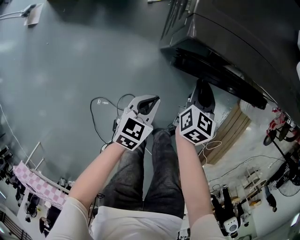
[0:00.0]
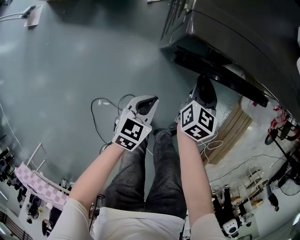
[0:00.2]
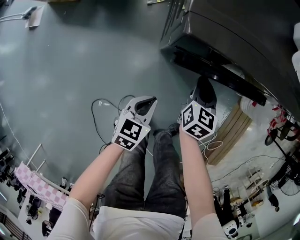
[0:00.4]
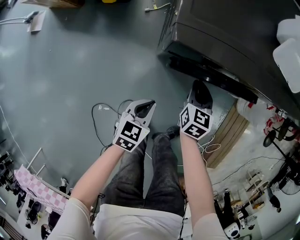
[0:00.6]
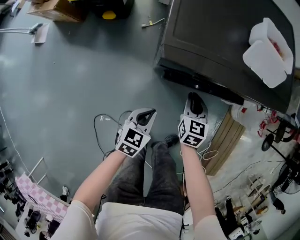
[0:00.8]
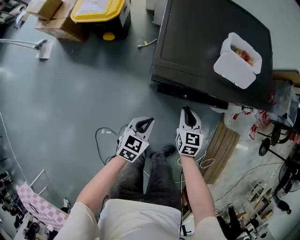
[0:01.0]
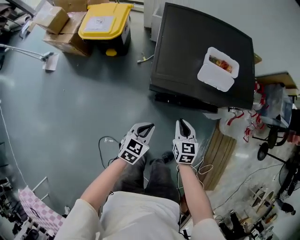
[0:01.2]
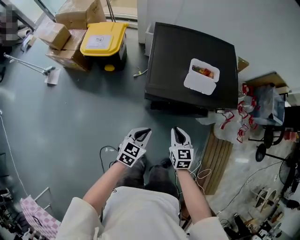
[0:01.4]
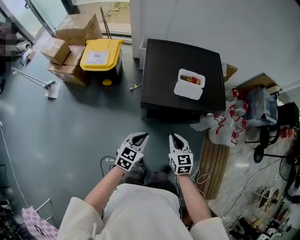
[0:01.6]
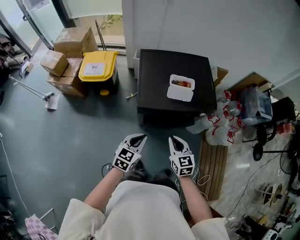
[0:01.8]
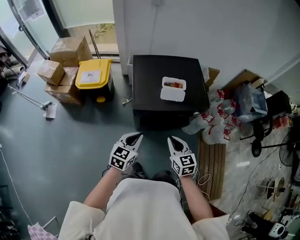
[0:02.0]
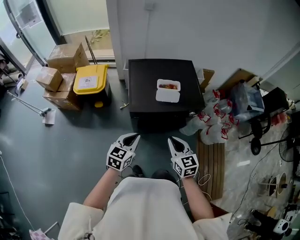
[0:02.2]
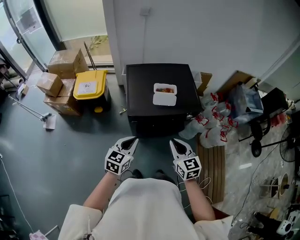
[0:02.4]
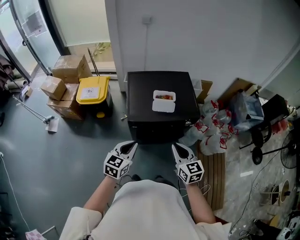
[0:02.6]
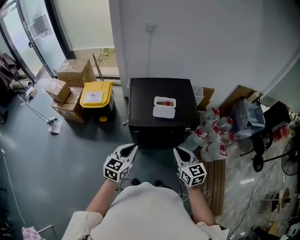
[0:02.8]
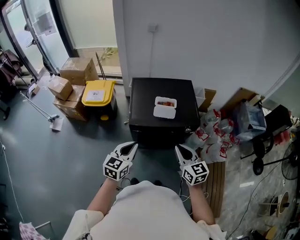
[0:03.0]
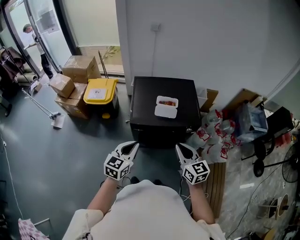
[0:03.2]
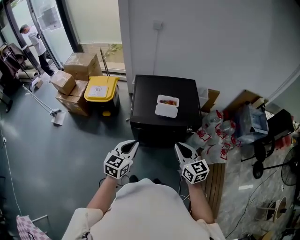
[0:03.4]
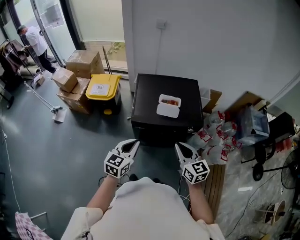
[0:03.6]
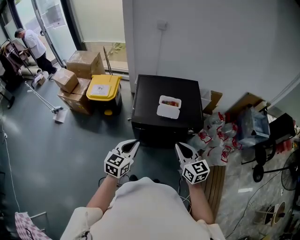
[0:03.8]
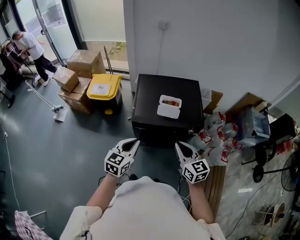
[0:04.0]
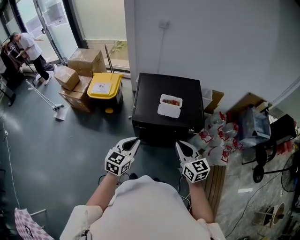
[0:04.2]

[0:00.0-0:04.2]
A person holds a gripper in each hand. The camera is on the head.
0:00.0 to 0:01.4: The grippers both shift upward by about 30 cm. The right gripper turns by roughly 20 degrees.
0:01.4 to 0:02.8: The left gripper goes roughly 25 cm upward. Meanwhile the right gripper shifts roughly 30 cm upward and to the right.
0:02.8 to 0:04.2: There are only small adjustments of the grippers.

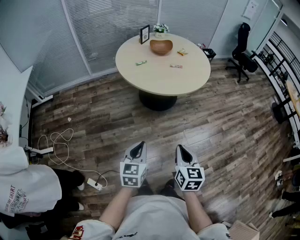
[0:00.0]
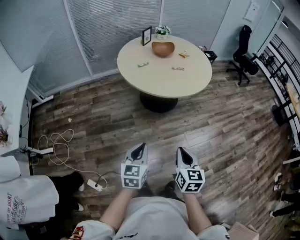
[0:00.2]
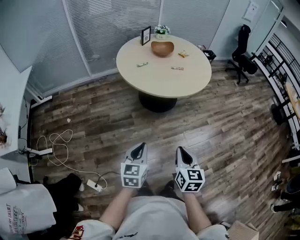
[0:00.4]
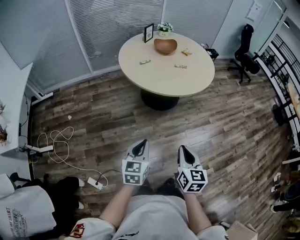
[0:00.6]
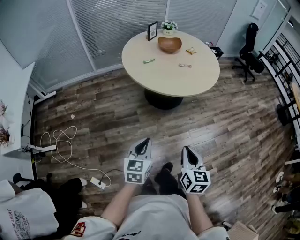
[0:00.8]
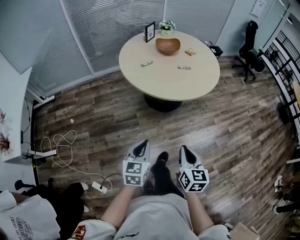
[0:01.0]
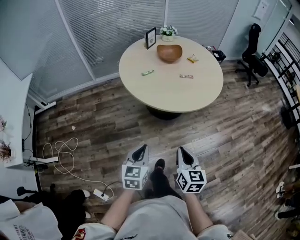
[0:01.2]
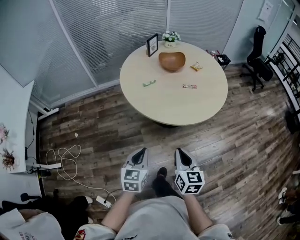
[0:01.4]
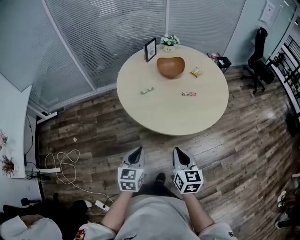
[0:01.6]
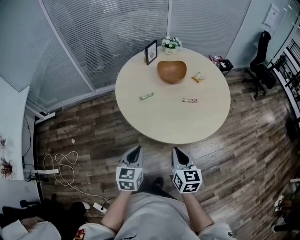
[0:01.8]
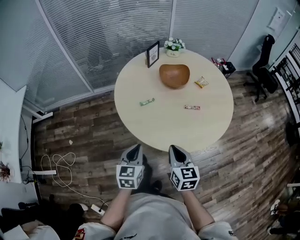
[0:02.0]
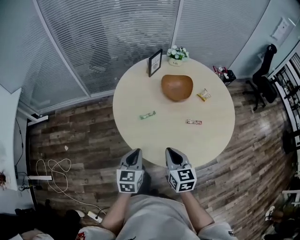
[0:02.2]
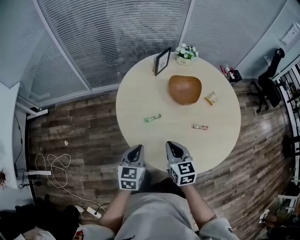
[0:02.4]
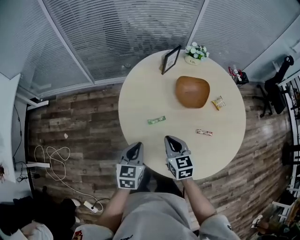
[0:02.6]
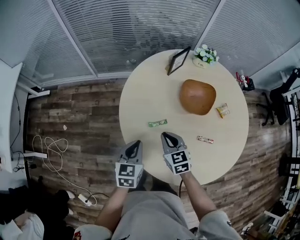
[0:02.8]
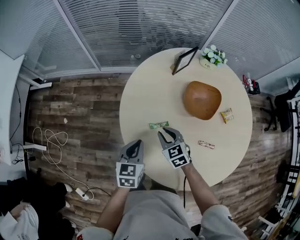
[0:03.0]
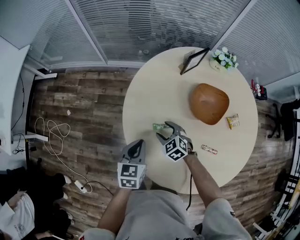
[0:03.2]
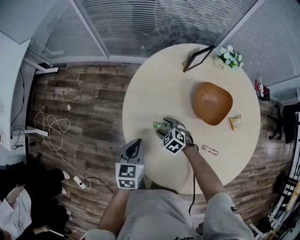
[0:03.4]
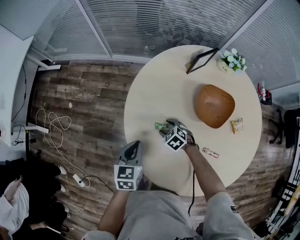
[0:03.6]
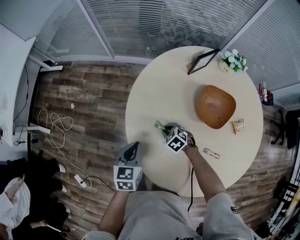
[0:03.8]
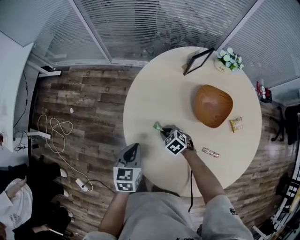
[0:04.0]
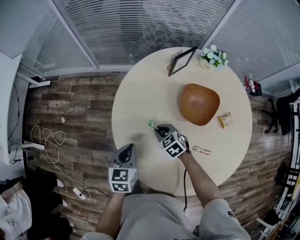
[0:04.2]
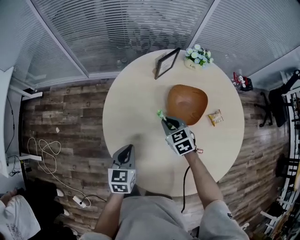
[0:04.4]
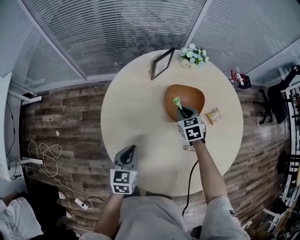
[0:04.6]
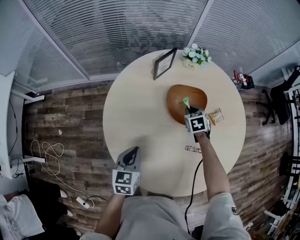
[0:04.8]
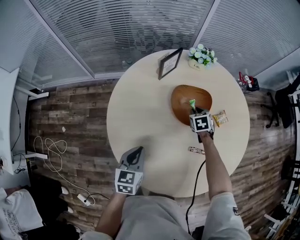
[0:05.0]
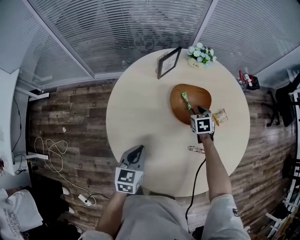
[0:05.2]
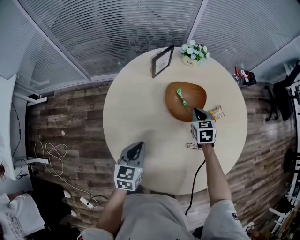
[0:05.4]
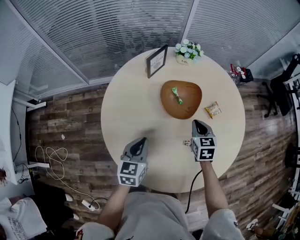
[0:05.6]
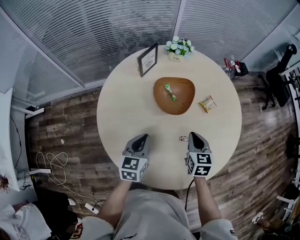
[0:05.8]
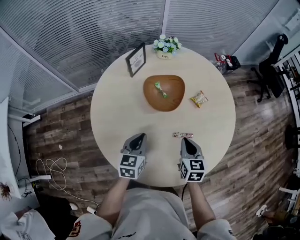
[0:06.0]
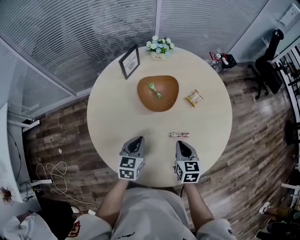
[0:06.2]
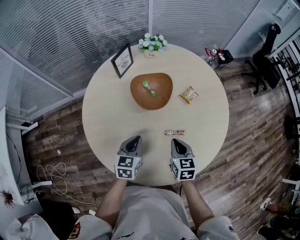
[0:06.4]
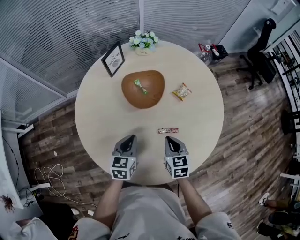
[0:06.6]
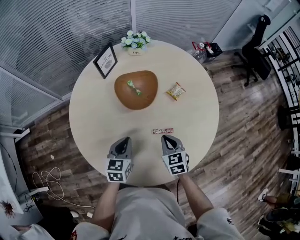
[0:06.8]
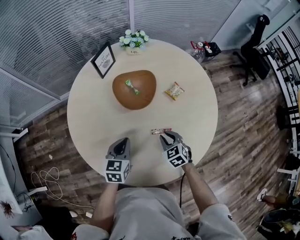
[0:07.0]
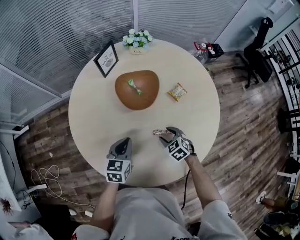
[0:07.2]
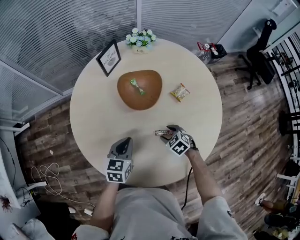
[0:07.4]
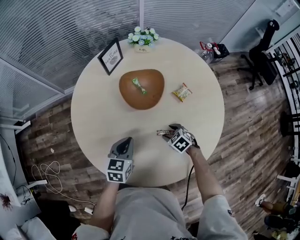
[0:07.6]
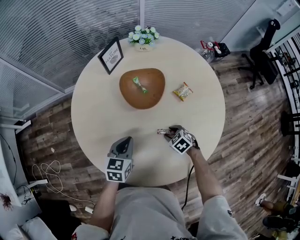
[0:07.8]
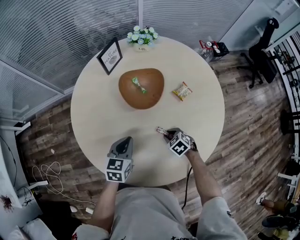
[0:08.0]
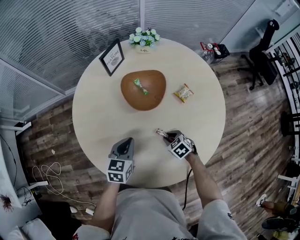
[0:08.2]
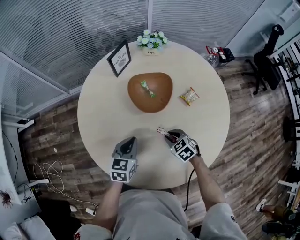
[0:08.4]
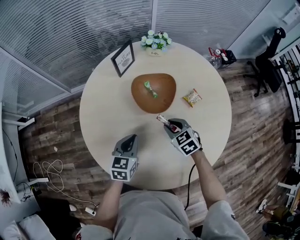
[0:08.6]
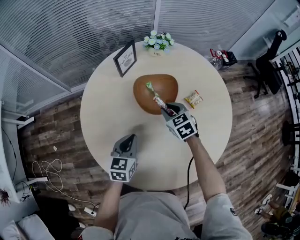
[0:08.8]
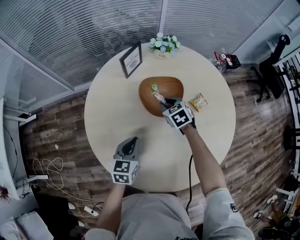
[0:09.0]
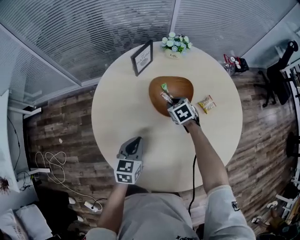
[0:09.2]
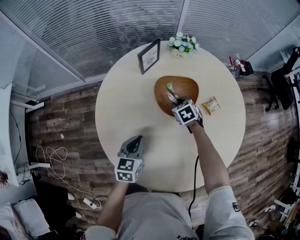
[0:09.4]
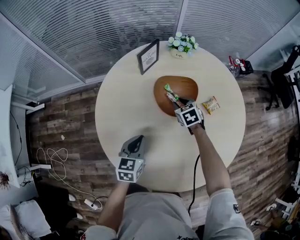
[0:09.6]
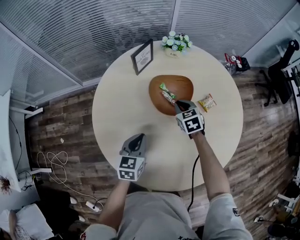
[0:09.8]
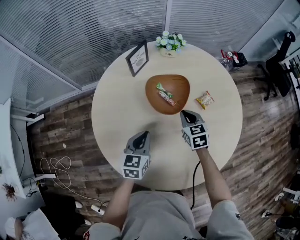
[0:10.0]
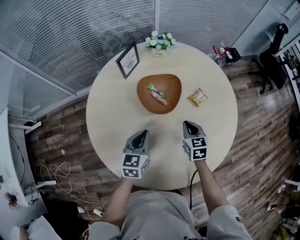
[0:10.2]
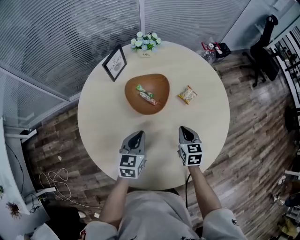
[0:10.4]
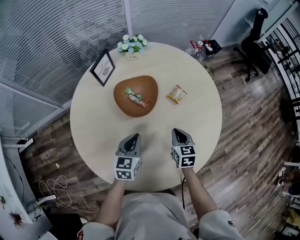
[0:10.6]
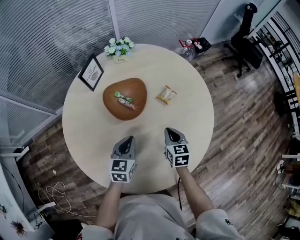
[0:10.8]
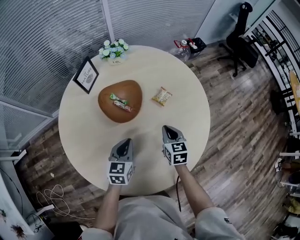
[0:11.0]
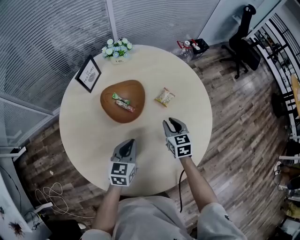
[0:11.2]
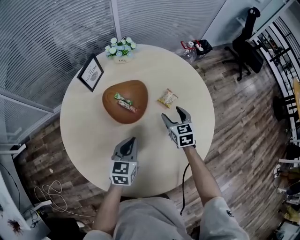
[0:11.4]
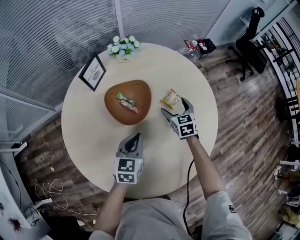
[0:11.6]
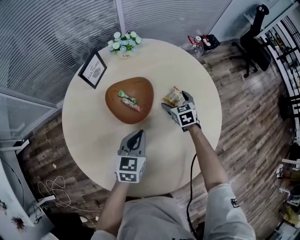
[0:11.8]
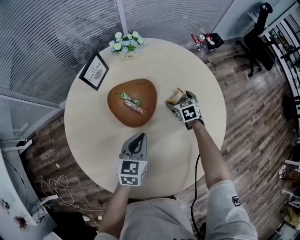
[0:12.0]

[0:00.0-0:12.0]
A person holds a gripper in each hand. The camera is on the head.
0:00.0 to 0:01.6: The grippers both shift forward by about 30 cm.
0:01.6 to 0:03.0: The grippers both shift forward by about 40 cm. The right gripper rotates approximately 50 degrees.
0:03.0 to 0:04.4: The left gripper travels to the right by some 5 cm, while the right gripper moves to the right and forward, roughly 15 cm, reaches roughly 15 cm downward, then returns, and opens, then closes once more.
0:04.4 to 0:06.0: The right gripper moves about 5 cm downward and comes back, and changes its angle by about 40 degrees; the left gripper ends up about 15 cm from where it was.
0:06.0 to 0:07.6: The left gripper moves approximately 5 cm. The right gripper is displaced downward by roughly 20 cm, turns by roughly 50 degrees, and opens.
0:07.6 to 0:09.0: The right gripper travels forward and upward by some 25 cm, while the left gripper shifts by approximately 5 cm.
0:09.0 to 0:10.4: The left gripper is displaced to the right by some 5 cm; the right gripper goes some 20 cm backward and to the right, and rotates roughly 40 degrees.
0:10.4 to 0:12.0: The right gripper shifts roughly 20 cm forward and downward, and opens. The left gripper goes approximately 10 cm to the right and forward.

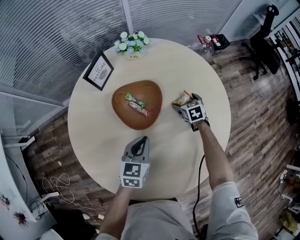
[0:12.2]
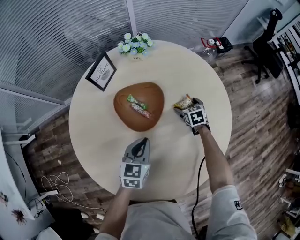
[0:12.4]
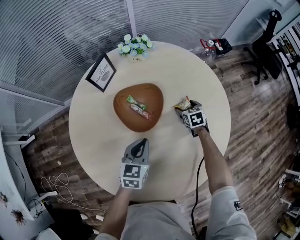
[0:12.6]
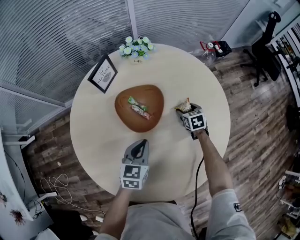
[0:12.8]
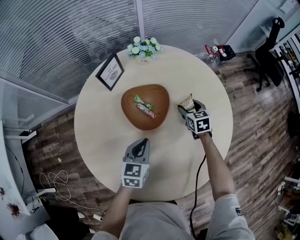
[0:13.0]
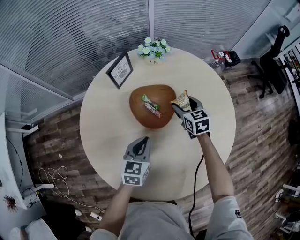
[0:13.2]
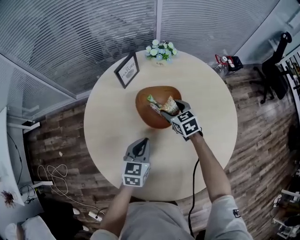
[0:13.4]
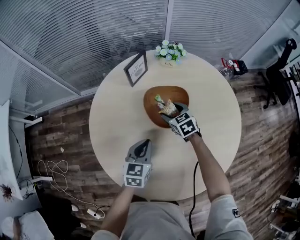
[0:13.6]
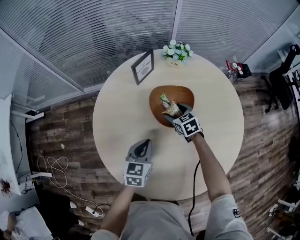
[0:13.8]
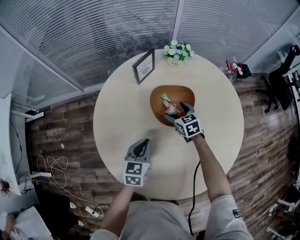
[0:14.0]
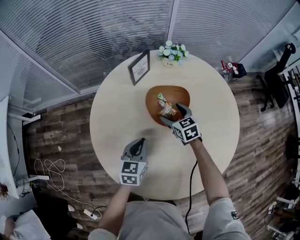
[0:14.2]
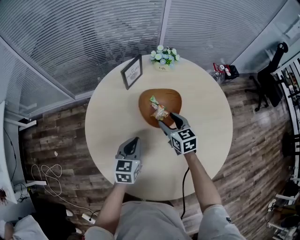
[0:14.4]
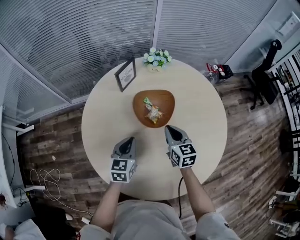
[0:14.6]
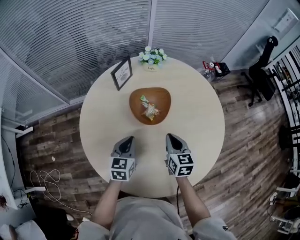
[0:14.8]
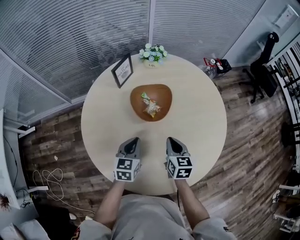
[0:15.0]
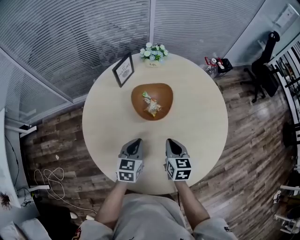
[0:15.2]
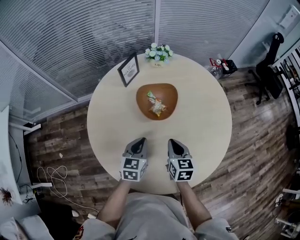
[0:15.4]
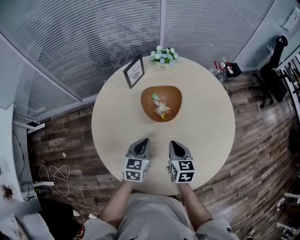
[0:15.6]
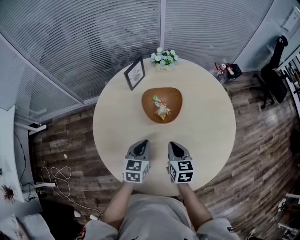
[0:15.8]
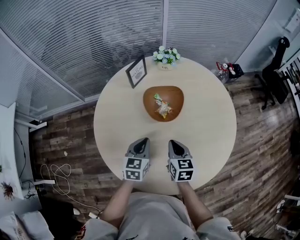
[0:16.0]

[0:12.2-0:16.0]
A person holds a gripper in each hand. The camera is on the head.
0:12.2 to 0:13.4: The right gripper moves to the left and upward, some 25 cm, swivels approximately 30 degrees, and closes; the left gripper is displaced to the left by approximately 5 cm.
0:13.4 to 0:14.8: The right gripper is displaced backward by about 15 cm, turns by approximately 30 degrees, and closes up.
0:14.8 to 0:16.0: The right gripper shifts by roughly 5 cm.

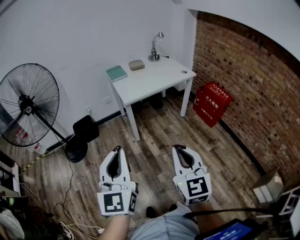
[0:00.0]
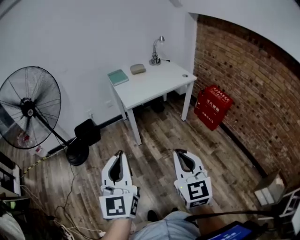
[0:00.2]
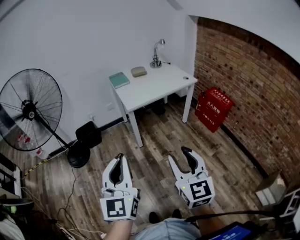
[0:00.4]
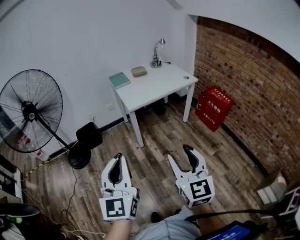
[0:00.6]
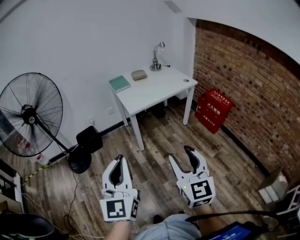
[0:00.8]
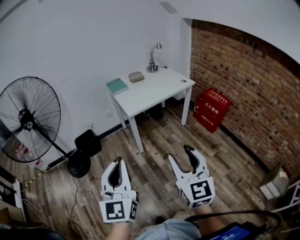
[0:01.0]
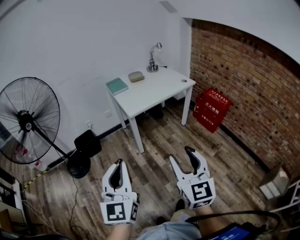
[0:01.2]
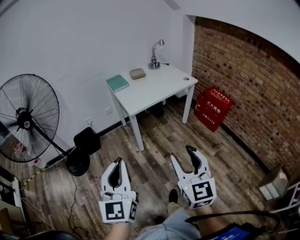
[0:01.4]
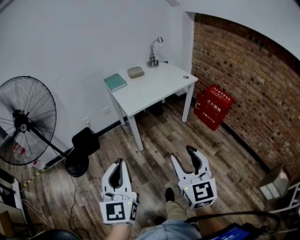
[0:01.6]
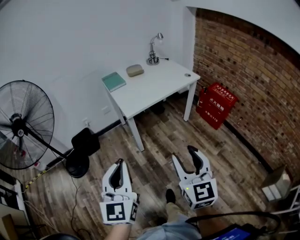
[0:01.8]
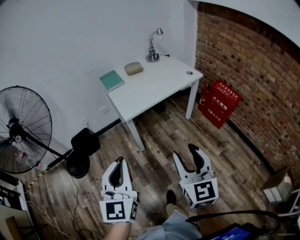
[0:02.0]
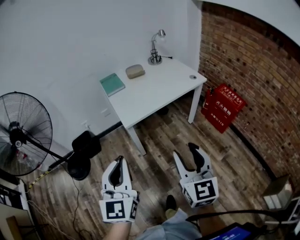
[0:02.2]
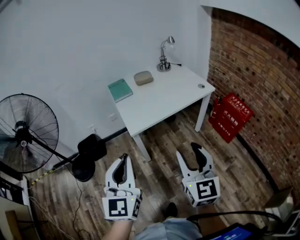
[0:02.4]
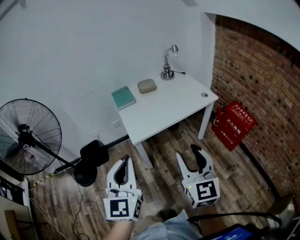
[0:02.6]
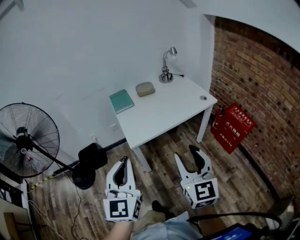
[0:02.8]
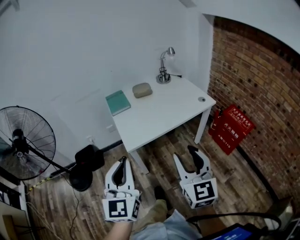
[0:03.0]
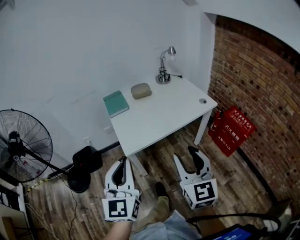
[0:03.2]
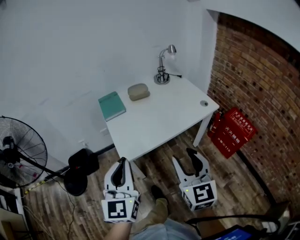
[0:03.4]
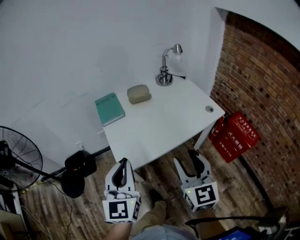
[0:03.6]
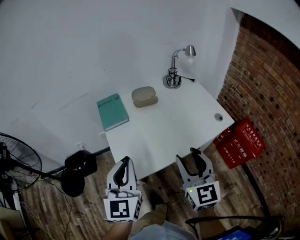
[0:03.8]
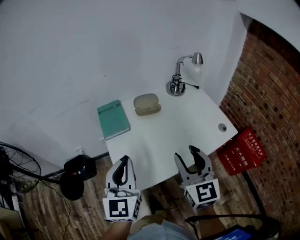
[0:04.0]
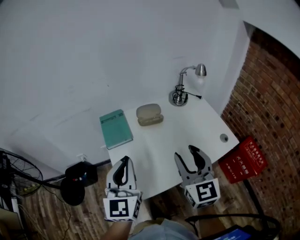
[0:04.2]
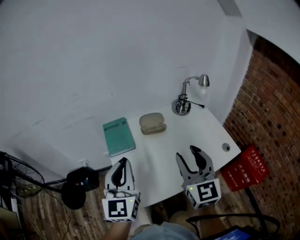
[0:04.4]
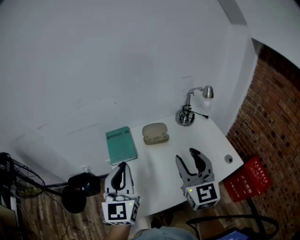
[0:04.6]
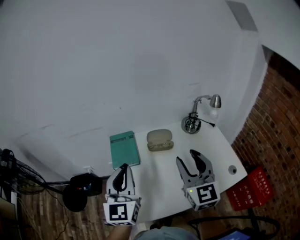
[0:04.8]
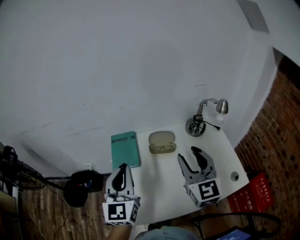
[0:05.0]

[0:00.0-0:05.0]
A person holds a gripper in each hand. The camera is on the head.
0:00.0 to 0:01.6: The left gripper heads forward and to the left, covering approximately 10 cm. The right gripper is displaced forward by approximately 5 cm, and opens its fingers.
0:01.6 to 0:03.4: The grippers both shift forward by about 40 cm.
0:03.4 to 0:05.0: Both grippers move forward, approximately 40 cm.
